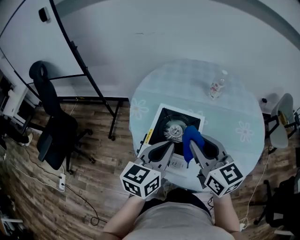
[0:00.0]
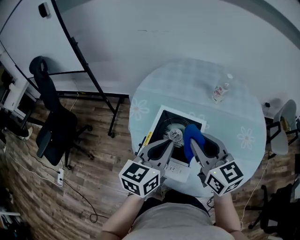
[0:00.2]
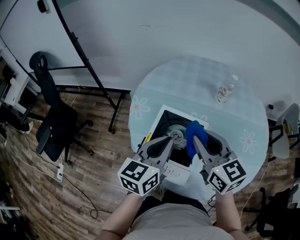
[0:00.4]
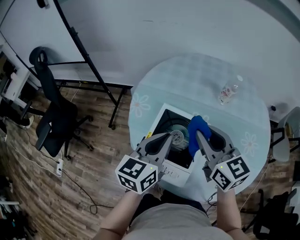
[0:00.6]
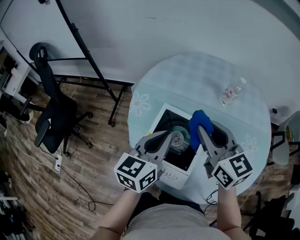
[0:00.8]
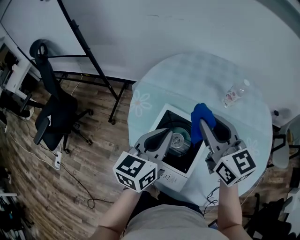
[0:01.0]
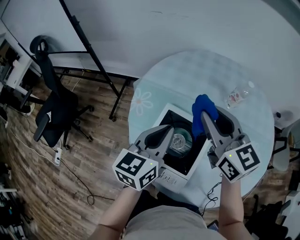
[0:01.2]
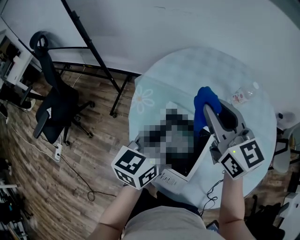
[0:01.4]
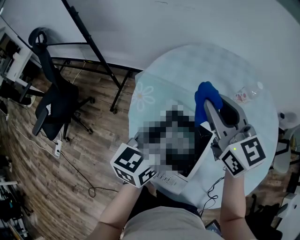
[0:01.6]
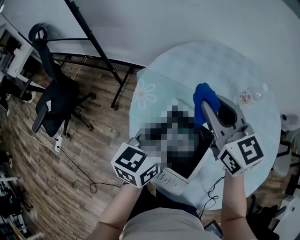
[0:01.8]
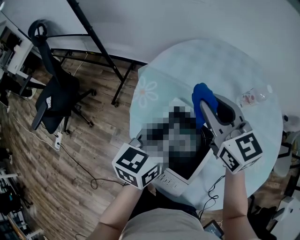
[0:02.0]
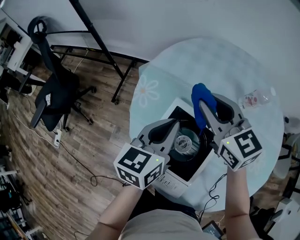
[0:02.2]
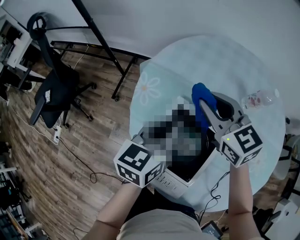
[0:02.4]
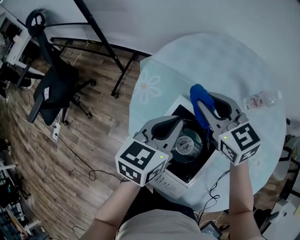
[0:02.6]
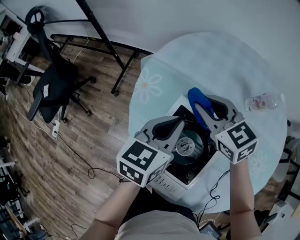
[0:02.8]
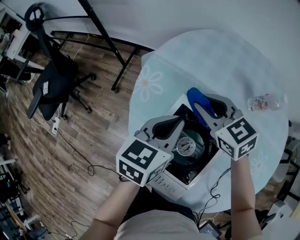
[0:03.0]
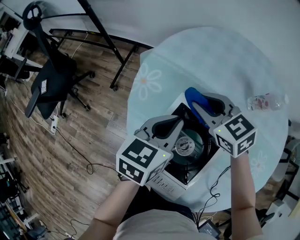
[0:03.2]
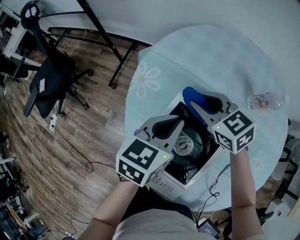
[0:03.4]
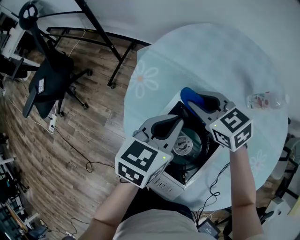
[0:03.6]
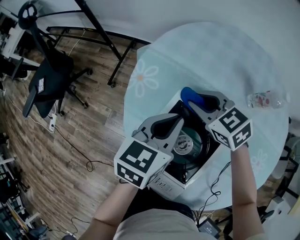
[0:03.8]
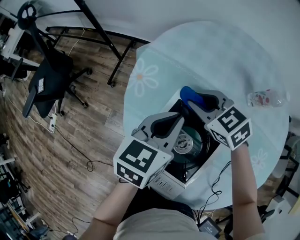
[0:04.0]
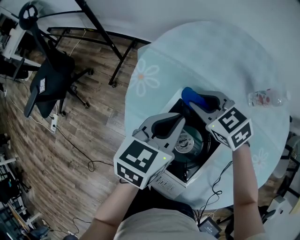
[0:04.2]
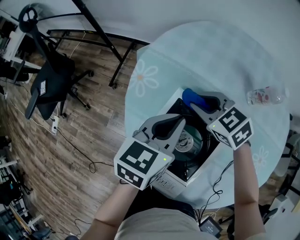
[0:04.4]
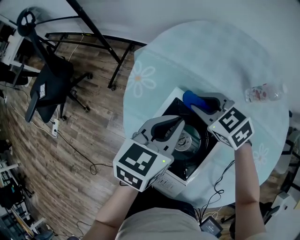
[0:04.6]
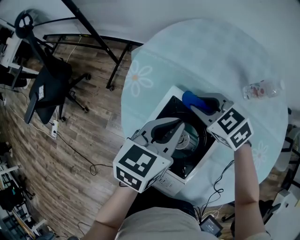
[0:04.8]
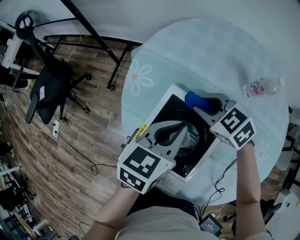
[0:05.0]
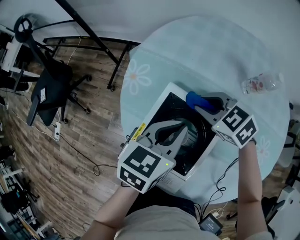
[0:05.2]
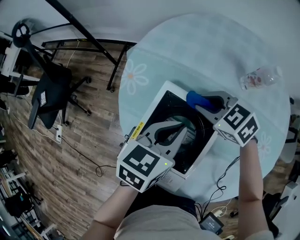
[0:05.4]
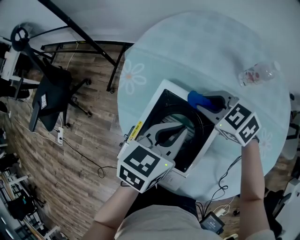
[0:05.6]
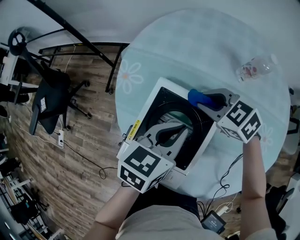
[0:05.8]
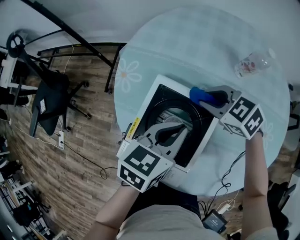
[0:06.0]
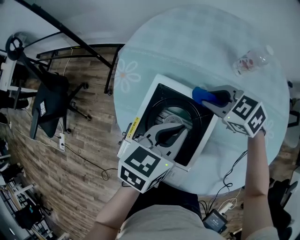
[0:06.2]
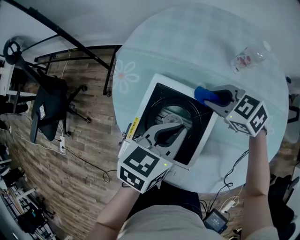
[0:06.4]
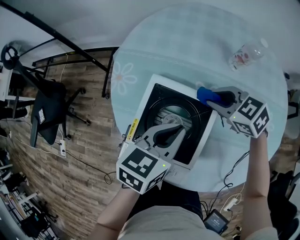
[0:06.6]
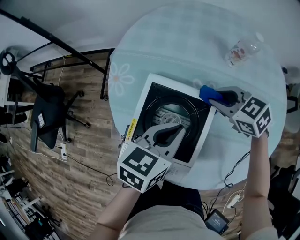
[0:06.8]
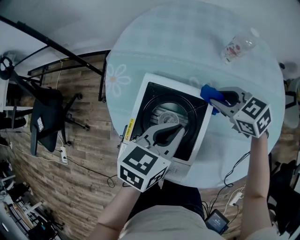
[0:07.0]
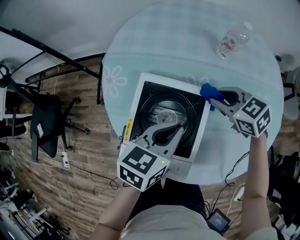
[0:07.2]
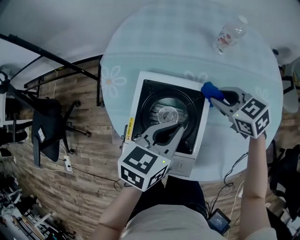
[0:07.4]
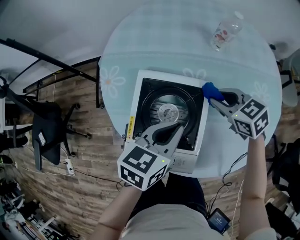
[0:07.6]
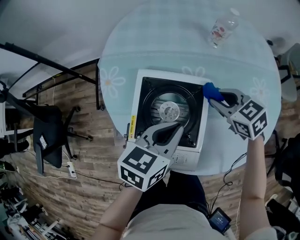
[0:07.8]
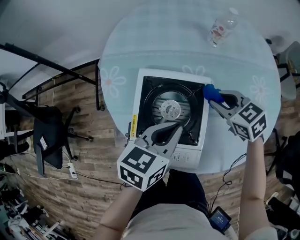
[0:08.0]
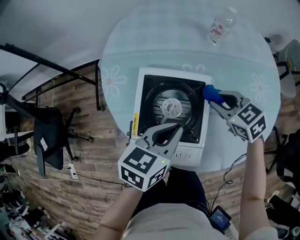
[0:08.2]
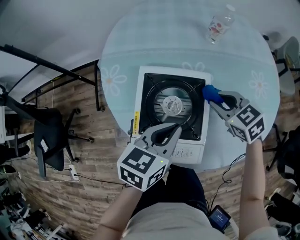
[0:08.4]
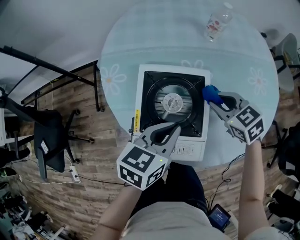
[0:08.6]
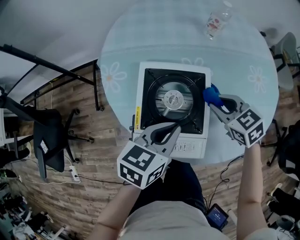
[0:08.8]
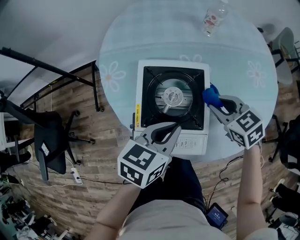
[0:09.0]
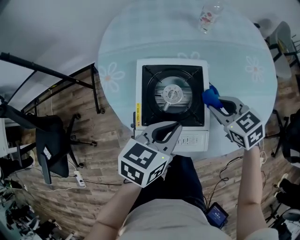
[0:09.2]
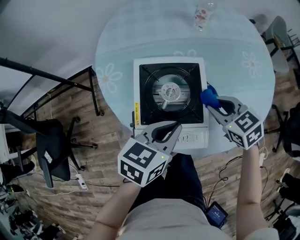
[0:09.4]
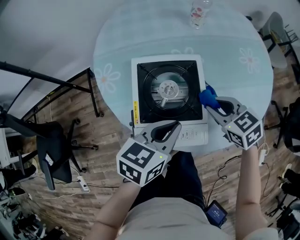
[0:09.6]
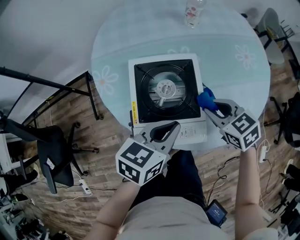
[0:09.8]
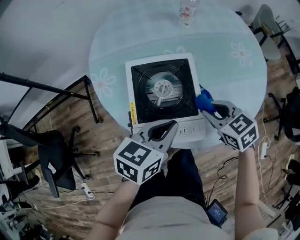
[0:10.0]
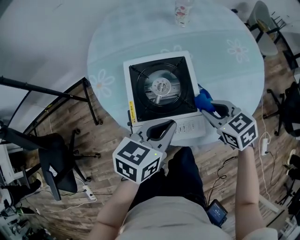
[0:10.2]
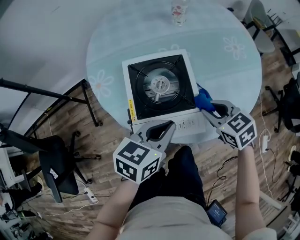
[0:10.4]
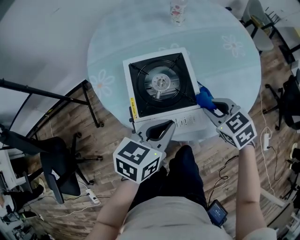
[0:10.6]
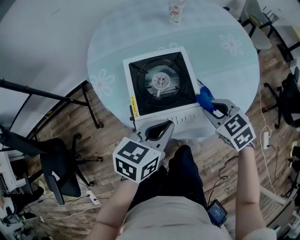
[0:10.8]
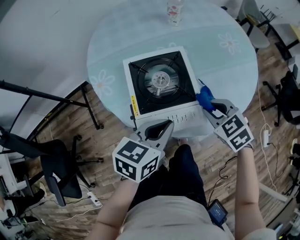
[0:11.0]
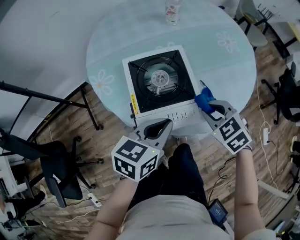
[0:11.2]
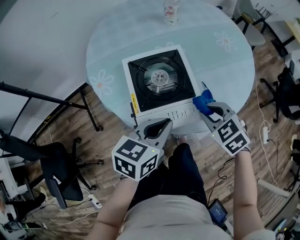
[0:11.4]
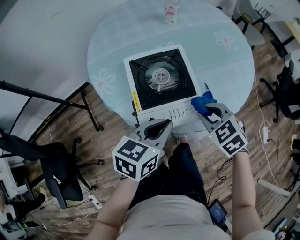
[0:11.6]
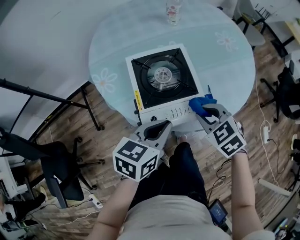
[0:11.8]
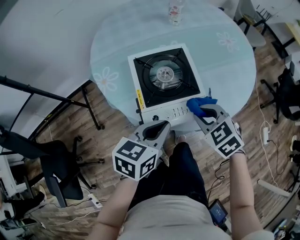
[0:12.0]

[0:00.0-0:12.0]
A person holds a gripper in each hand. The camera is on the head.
0:00.0 to 0:01.6: Both grippers travel together forward, roughly 15 cm.
0:01.6 to 0:03.0: The right gripper travels downward by some 15 cm, and turns by roughly 30 degrees, while the left gripper travels downward by roughly 10 cm.
0:03.0 to 0:04.4: The right gripper moves downward, about 5 cm.
0:04.4 to 0:06.0: The right gripper shifts about 10 cm to the right and backward; the left gripper is displaced backward and to the right by some 10 cm.
0:06.0 to 0:07.6: The right gripper shifts some 10 cm to the right and backward, and swivels some 30 degrees.
0:07.6 to 0:09.0: The left gripper heads backward, covering roughly 5 cm, while the right gripper heads backward, covering approximately 10 cm.
0:09.0 to 0:10.4: The right gripper heads backward, covering approximately 10 cm.
0:10.4 to 0:12.0: The right gripper shifts about 10 cm backward and to the left, while the left gripper travels backward by roughly 5 cm.

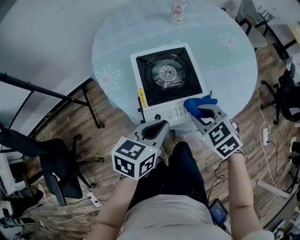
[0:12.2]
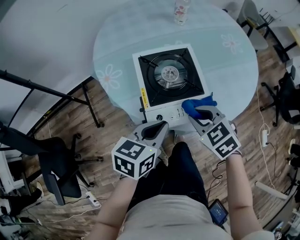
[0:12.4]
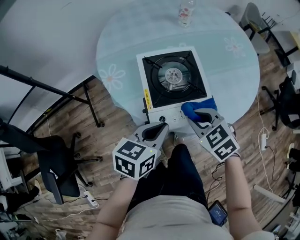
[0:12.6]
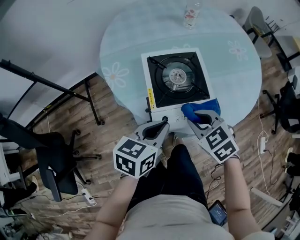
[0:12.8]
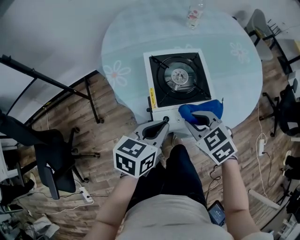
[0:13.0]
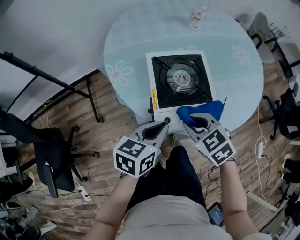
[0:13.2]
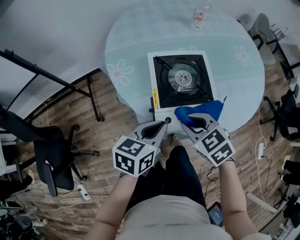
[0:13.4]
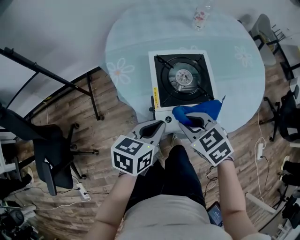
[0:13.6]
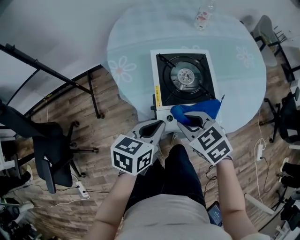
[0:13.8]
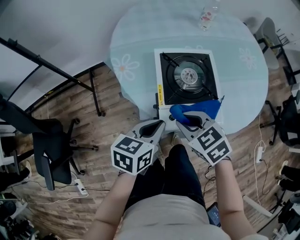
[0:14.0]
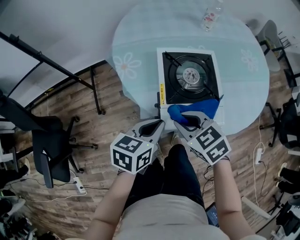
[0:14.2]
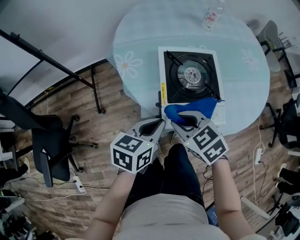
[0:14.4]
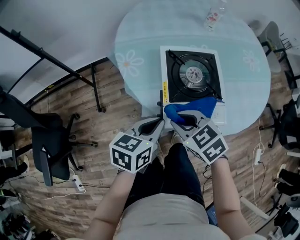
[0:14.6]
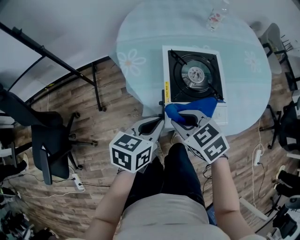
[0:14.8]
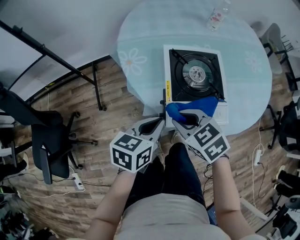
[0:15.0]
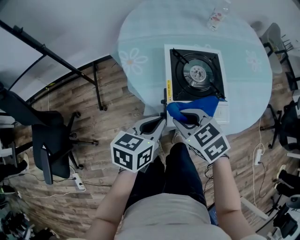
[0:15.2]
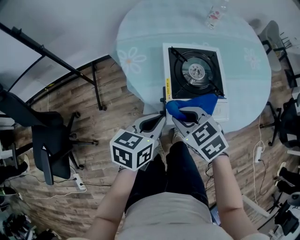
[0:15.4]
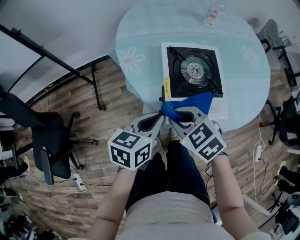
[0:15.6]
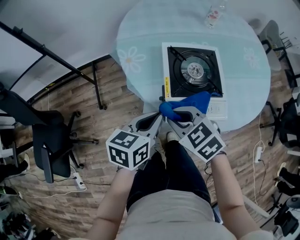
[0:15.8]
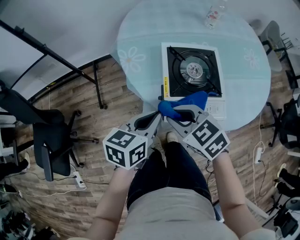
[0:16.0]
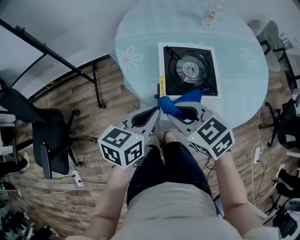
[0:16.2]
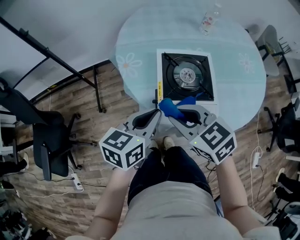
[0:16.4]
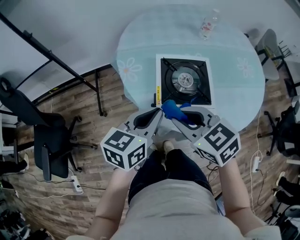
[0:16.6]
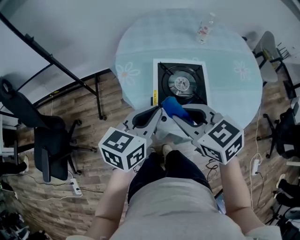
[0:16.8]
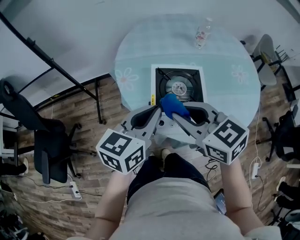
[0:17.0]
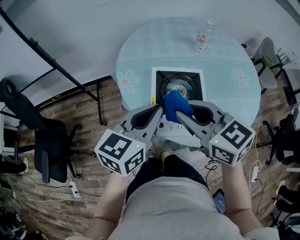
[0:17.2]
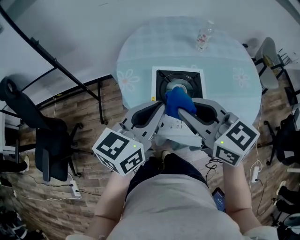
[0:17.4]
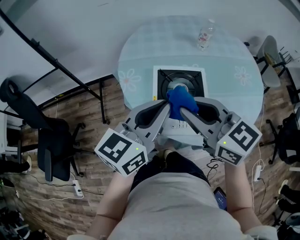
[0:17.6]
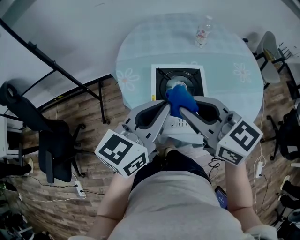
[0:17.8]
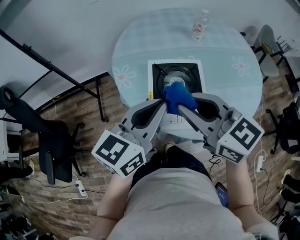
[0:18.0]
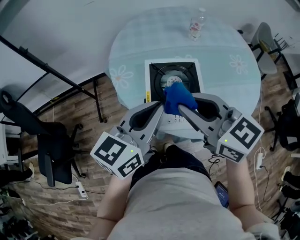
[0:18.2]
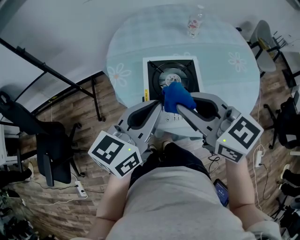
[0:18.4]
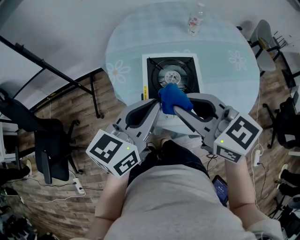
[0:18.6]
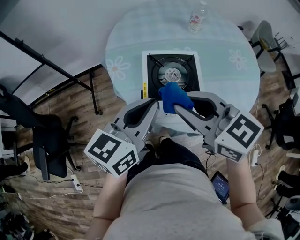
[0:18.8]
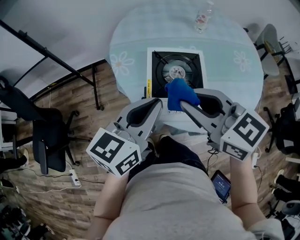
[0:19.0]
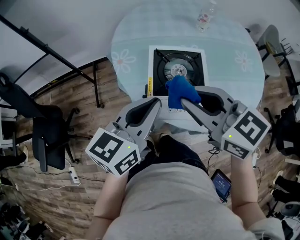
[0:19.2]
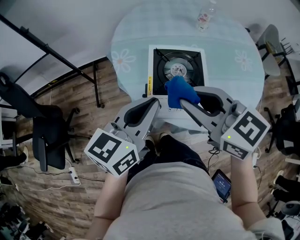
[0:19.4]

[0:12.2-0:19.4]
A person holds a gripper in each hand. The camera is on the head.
0:12.2 to 0:13.6: The right gripper shifts roughly 10 cm to the left. The left gripper shifts by about 5 cm.
0:13.6 to 0:15.0: The right gripper travels to the left by about 5 cm.
0:15.0 to 0:16.6: The grippers both shift upward by roughly 10 cm.
0:16.6 to 0:18.0: The grippers both shift upward by about 10 cm. The right gripper rotates roughly 20 degrees.
0:18.0 to 0:19.4: The grippers move only a little.

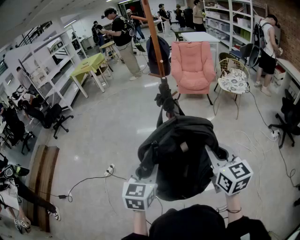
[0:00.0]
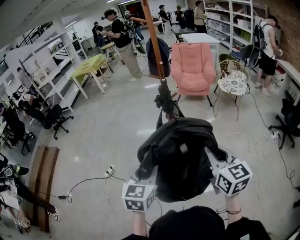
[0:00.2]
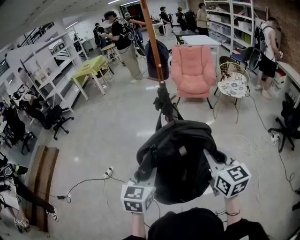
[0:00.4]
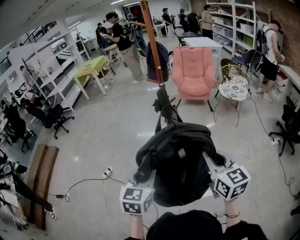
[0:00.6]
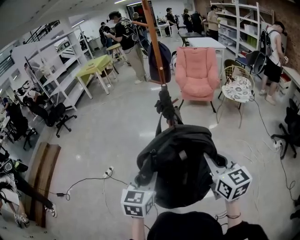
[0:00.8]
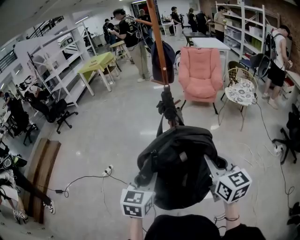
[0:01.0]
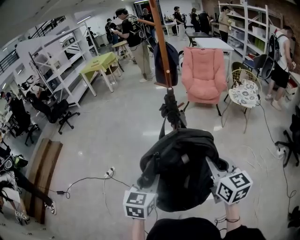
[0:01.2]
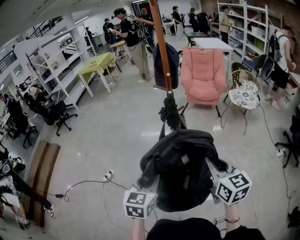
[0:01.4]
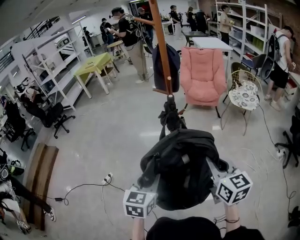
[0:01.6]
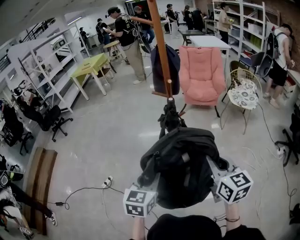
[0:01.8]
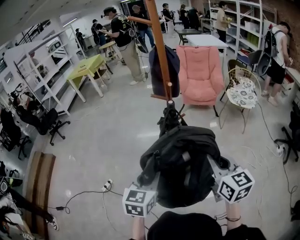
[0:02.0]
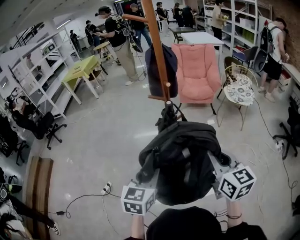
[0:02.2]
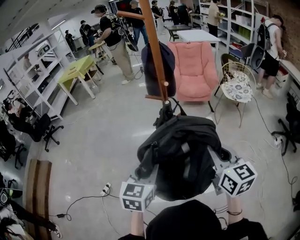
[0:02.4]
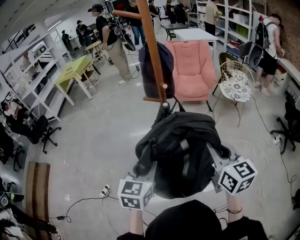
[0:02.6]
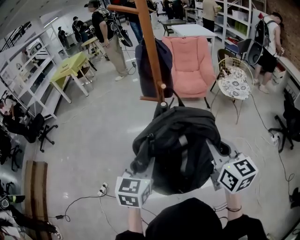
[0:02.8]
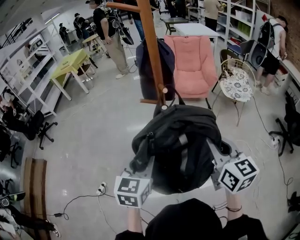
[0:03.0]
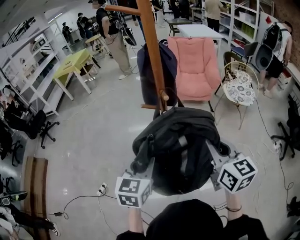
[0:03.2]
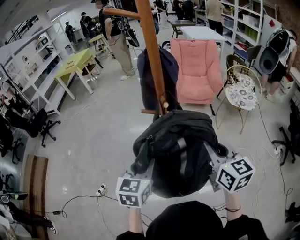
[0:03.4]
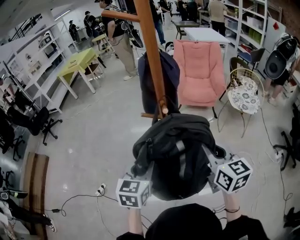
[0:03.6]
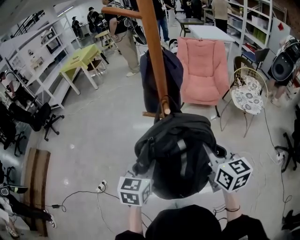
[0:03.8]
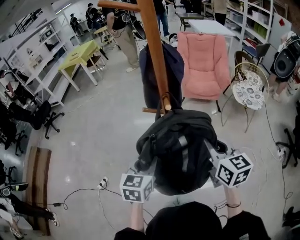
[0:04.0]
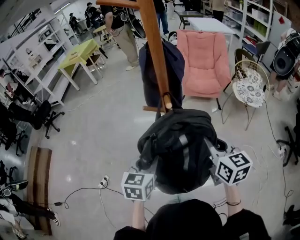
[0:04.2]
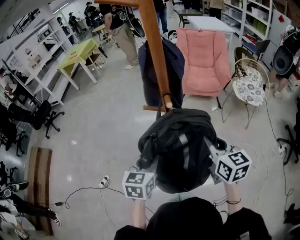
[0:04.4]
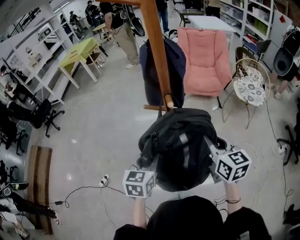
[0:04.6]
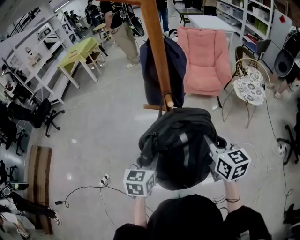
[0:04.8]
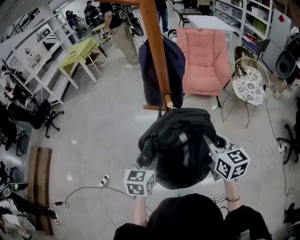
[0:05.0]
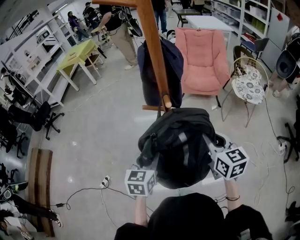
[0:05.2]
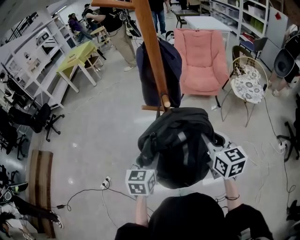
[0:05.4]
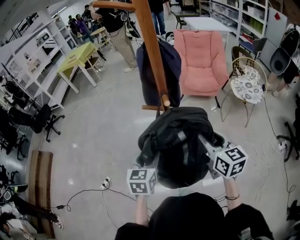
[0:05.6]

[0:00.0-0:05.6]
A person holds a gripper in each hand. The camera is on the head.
0:00.0 to 0:01.4: Both grippers travel together forward, roughly 10 cm.
0:01.4 to 0:02.8: The two grippers go some 20 cm forward.
0:02.8 to 0:04.2: The left gripper shifts about 10 cm forward and downward, while the right gripper travels forward by roughly 15 cm.
0:04.2 to 0:05.6: The right gripper opens.
